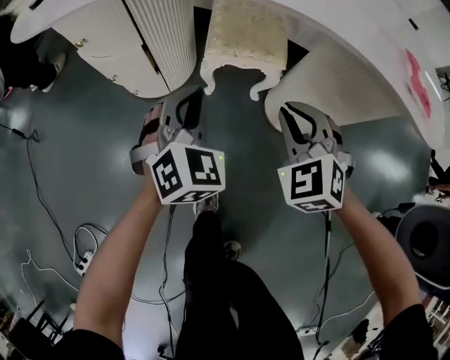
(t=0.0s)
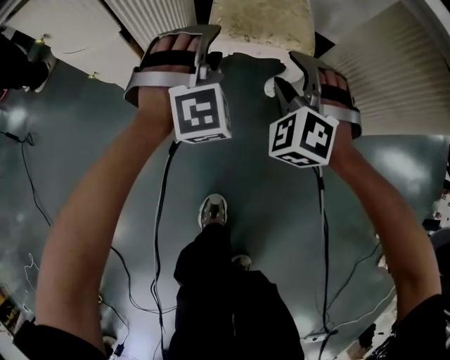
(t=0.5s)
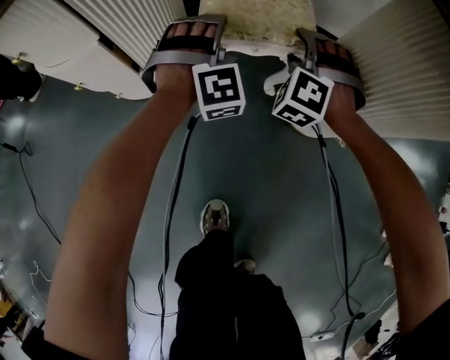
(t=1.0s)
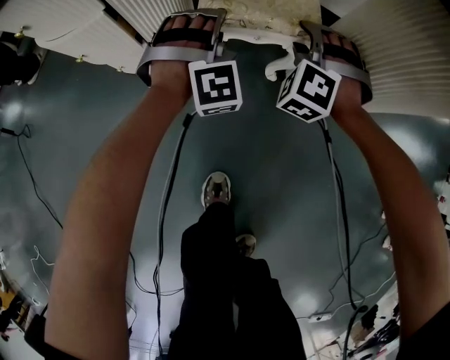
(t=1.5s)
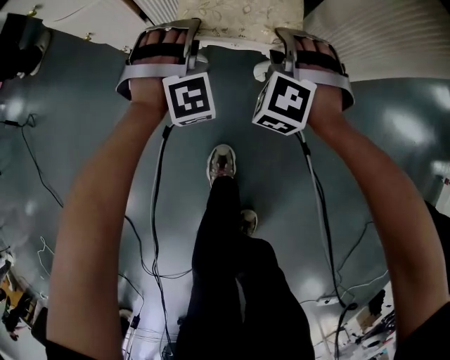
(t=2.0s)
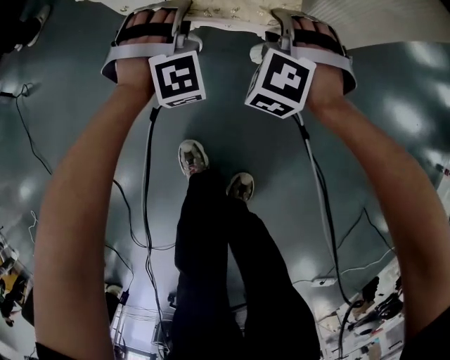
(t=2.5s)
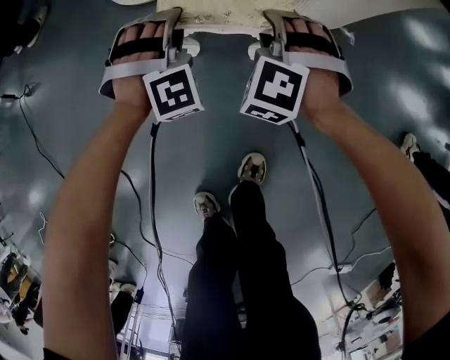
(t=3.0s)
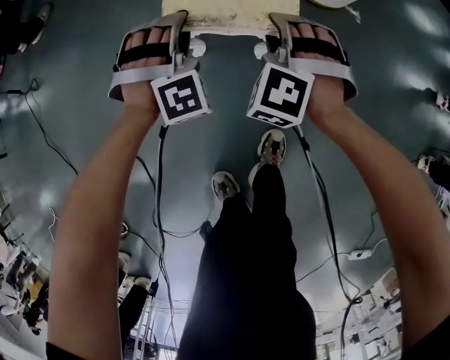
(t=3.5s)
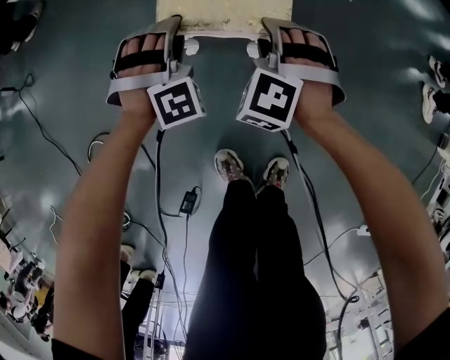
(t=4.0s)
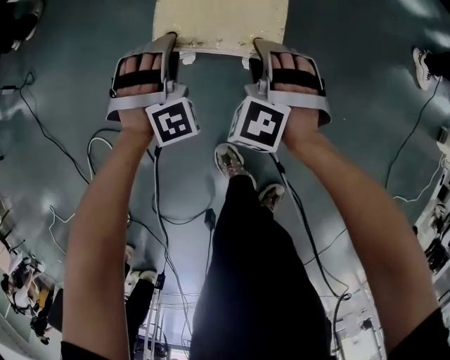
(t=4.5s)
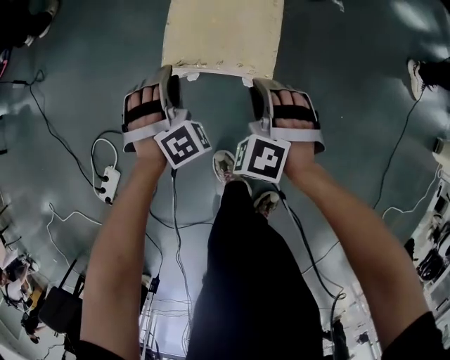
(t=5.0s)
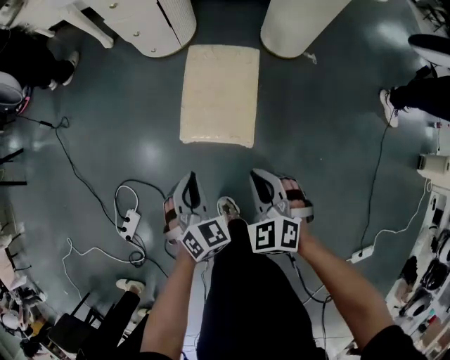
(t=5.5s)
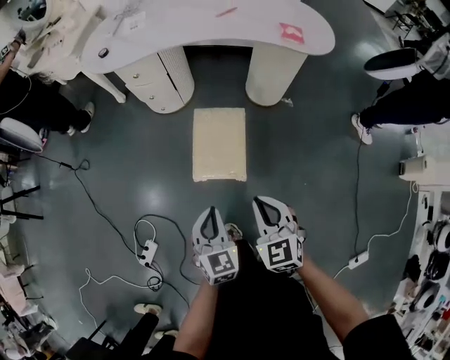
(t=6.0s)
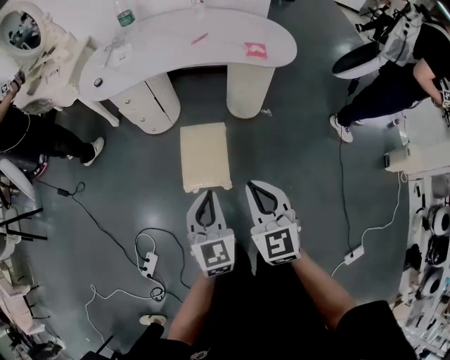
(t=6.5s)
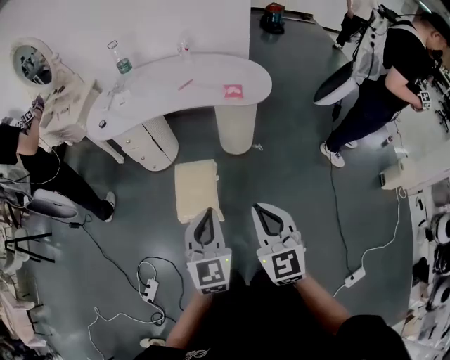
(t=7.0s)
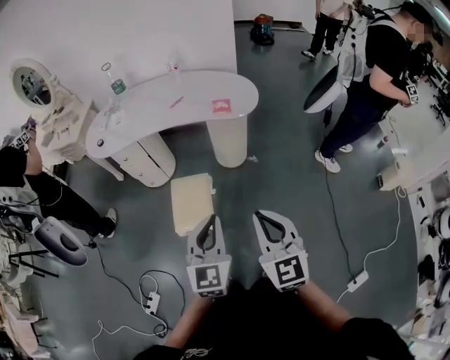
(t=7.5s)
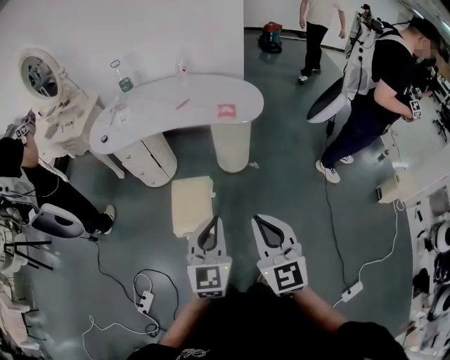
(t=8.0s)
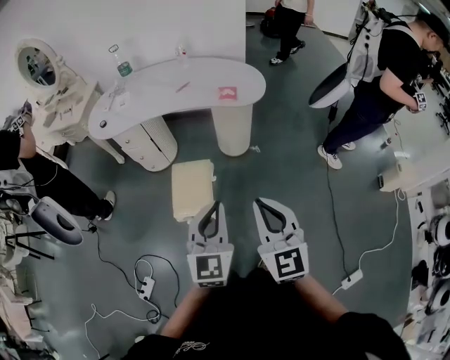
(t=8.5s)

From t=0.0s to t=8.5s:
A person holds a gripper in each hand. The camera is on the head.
From t=0.0s to t=2.0s: The grippers both shift downward by approximately 20 cm. The right gripper reaches roughly 20 cm forward, then returns, changes its angle by some 30 degrees, and opens up. The left gripper goes forward and returns, some 20 cm each way, rotates around the line of its fingers by some 50 degrees, clockwise from behind, and opens.
From t=2.0s to t=4.0s: The grippers both shift backward by approximately 35 cm.
From t=4.0s to t=6.5s: The two grippers go some 60 cm upward. The left gripper rotates around the line of its fingers by about 70 degrees, counterclockwise from behind, and closes; the right gripper rotates around the line of its fingers by approximately 60 degrees, clockwise from behind, and closes up.
From t=6.5s to t=8.5s: The right gripper heads to the right, upward and backward, covering roughly 20 cm, while the left gripper moves to the right and upward, roughly 20 cm.

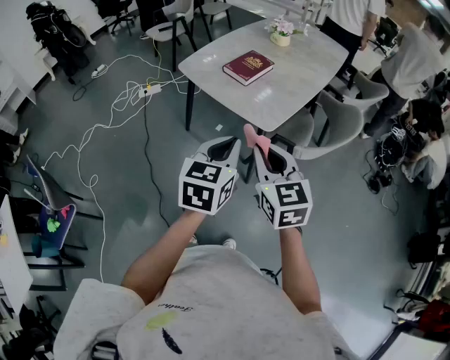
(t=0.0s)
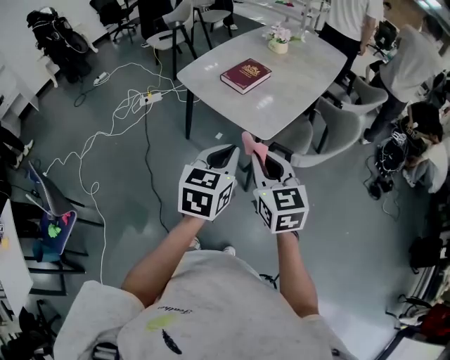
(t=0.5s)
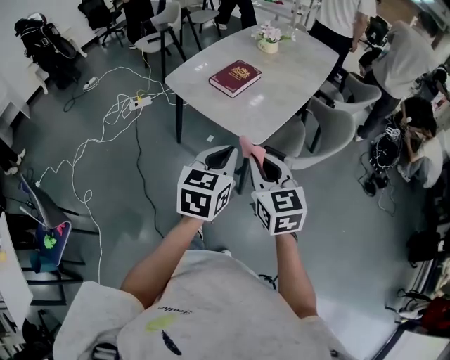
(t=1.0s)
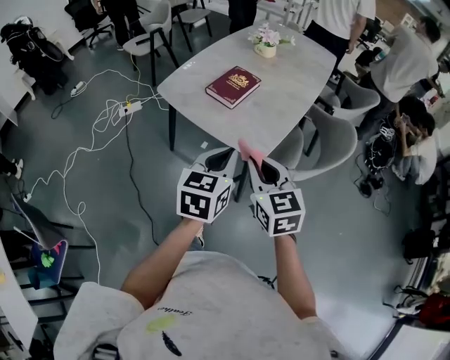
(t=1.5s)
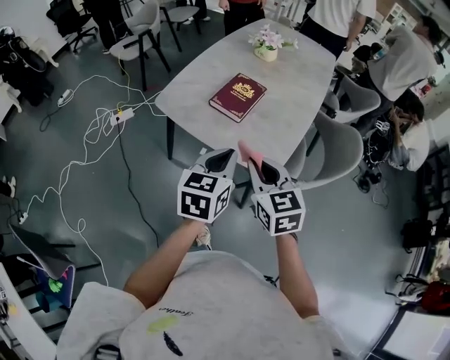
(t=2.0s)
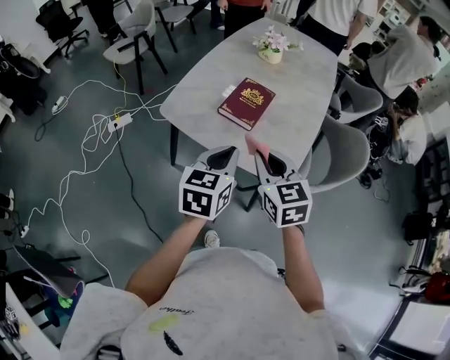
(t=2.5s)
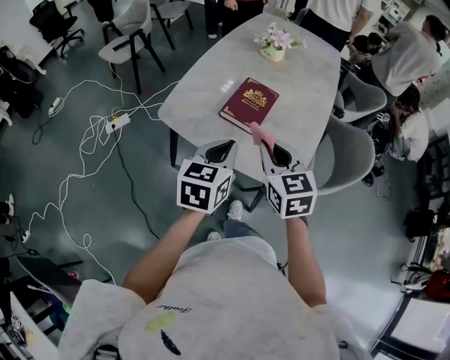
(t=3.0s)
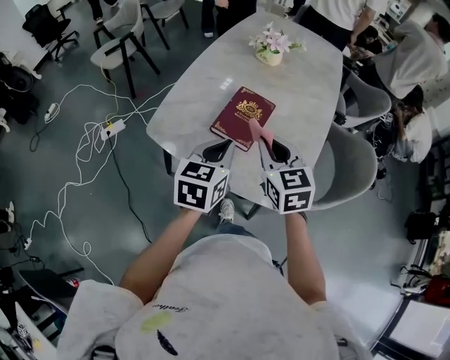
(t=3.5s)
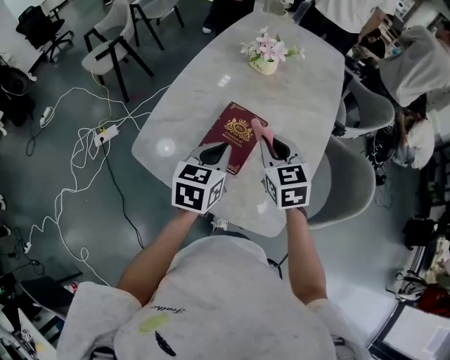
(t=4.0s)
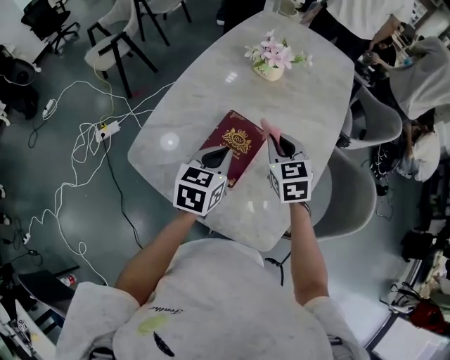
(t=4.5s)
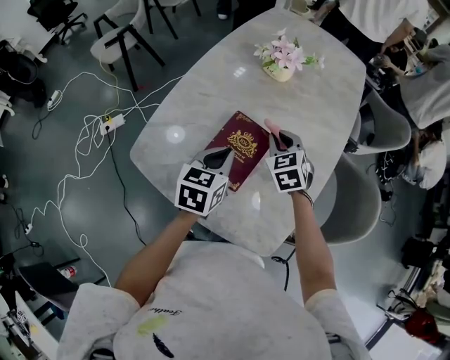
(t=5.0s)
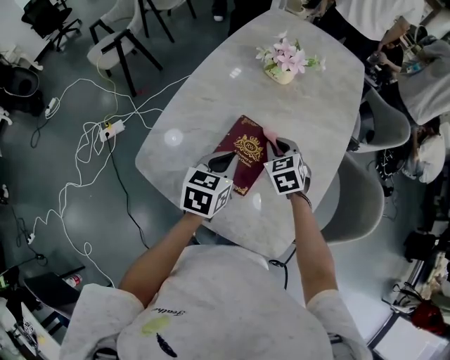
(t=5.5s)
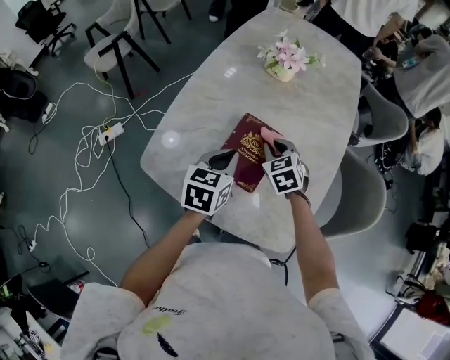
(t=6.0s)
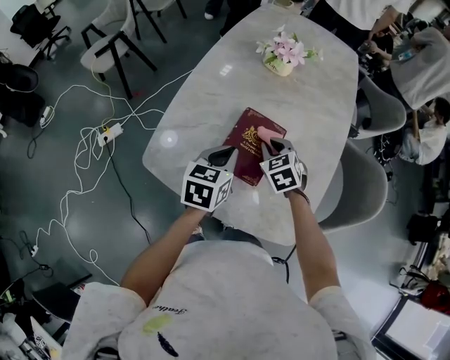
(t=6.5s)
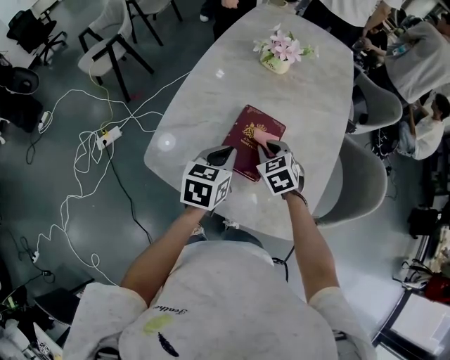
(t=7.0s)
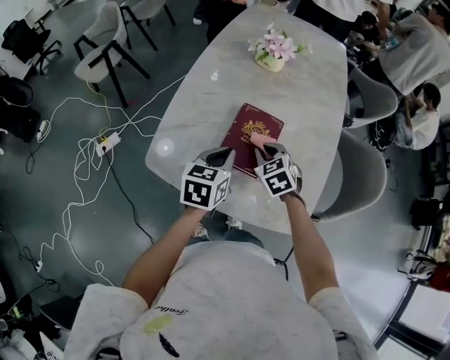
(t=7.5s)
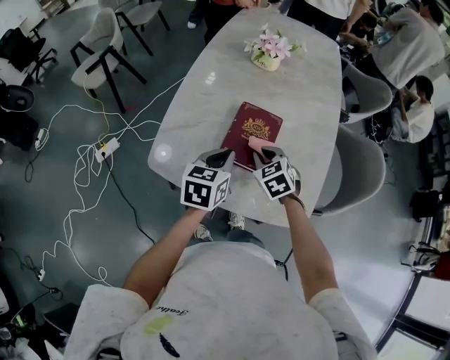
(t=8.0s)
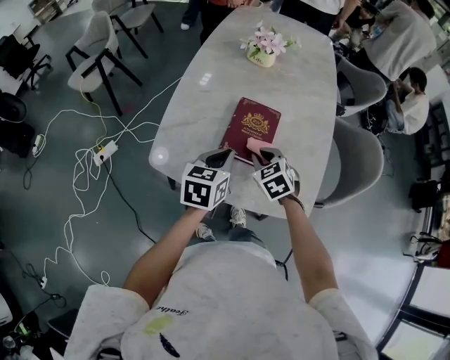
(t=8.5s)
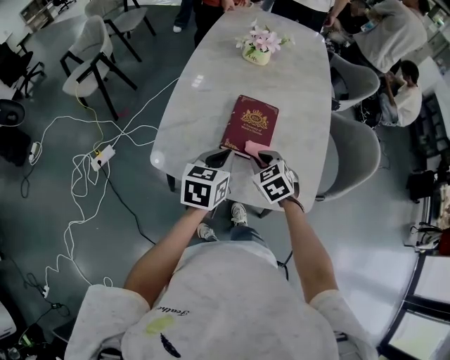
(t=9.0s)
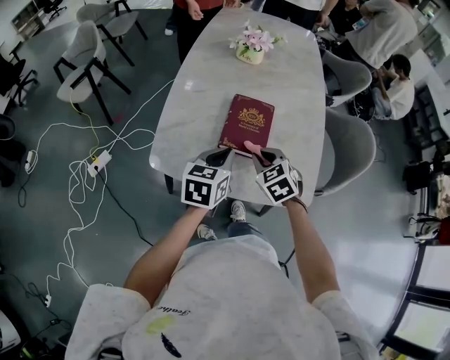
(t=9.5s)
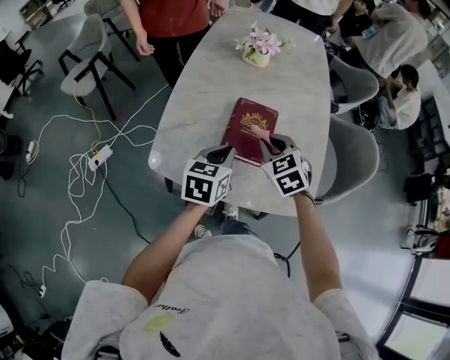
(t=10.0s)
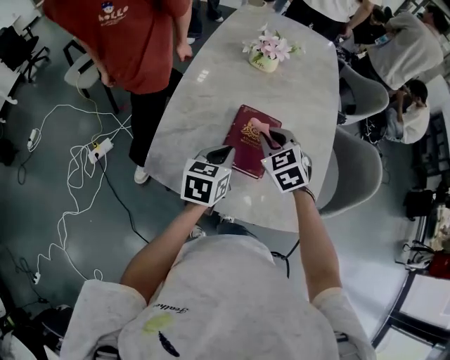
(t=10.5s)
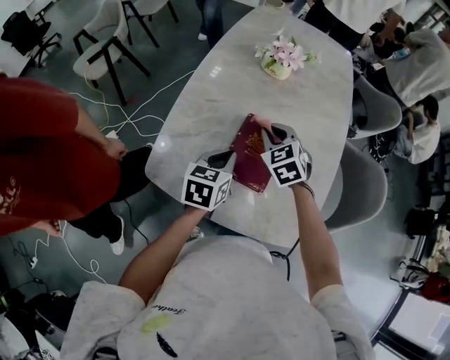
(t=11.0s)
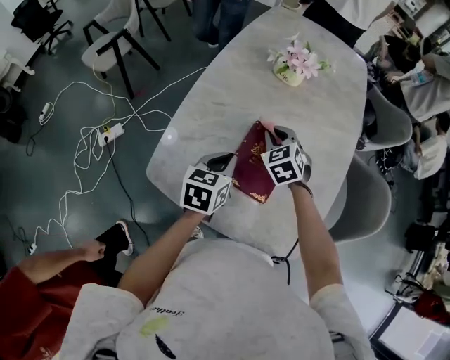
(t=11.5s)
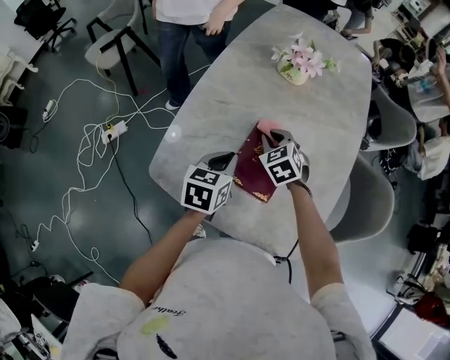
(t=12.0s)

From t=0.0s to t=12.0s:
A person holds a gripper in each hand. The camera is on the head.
From t=0.0s to t=2.0s: The two grippers go approximately 20 cm forward.
From t=2.0s to t=4.0s: Both grippers move forward, some 30 cm.
From t=4.0s to t=6.0s: The left gripper travels forward by approximately 5 cm. Meanwhile the right gripper moves downward and forward, approximately 15 cm, and changes its angle by some 20 degrees.
From t=6.0s to t=8.0s: The left gripper moves backward, some 5 cm; the right gripper goes about 10 cm backward.
From t=8.0s to t=10.0s: The right gripper goes approximately 5 cm upward.
From t=10.0s to t=12.0s: The left gripper heads forward, covering about 10 cm. Meanwhile the right gripper moves forward and downward, roughly 15 cm.

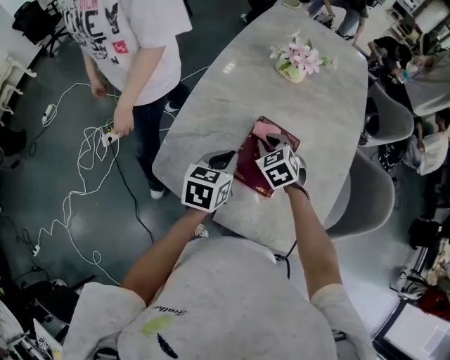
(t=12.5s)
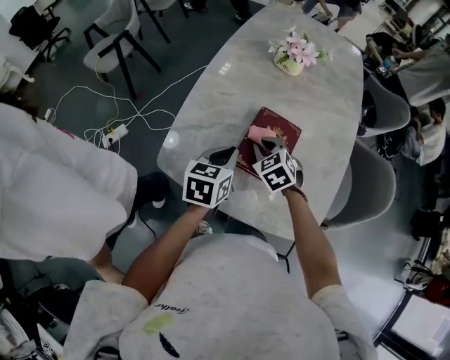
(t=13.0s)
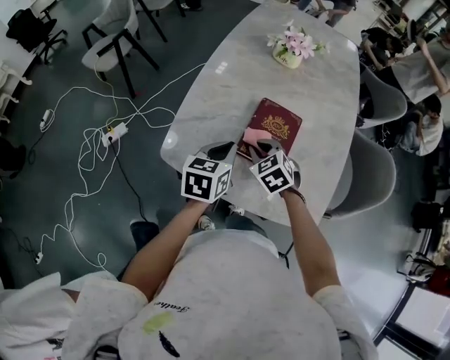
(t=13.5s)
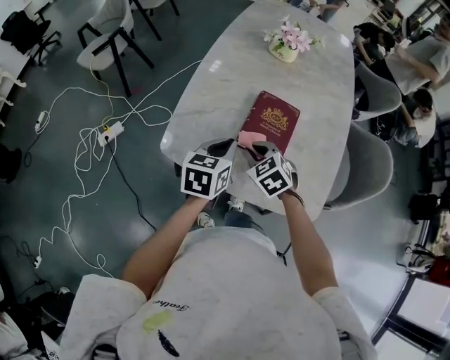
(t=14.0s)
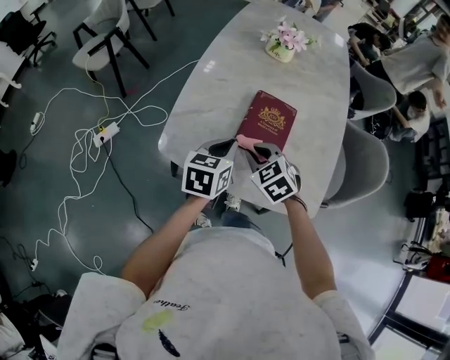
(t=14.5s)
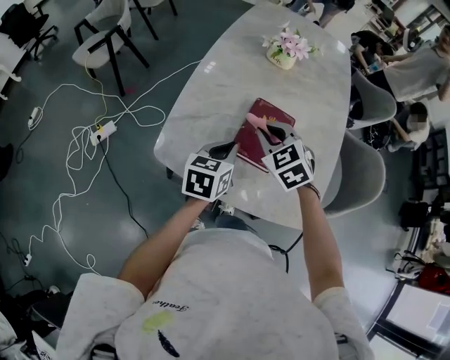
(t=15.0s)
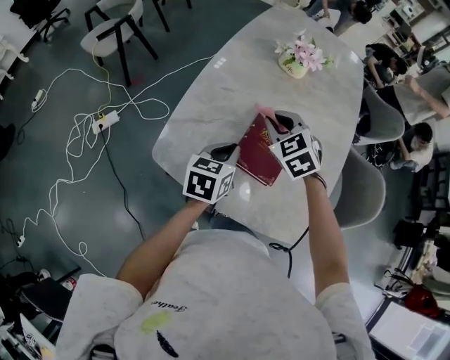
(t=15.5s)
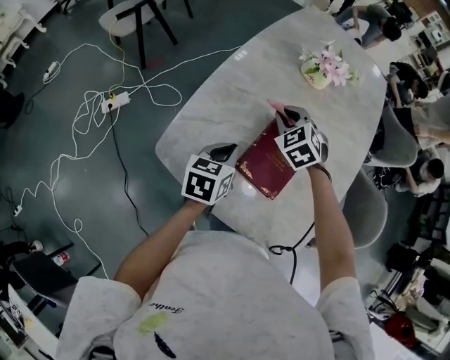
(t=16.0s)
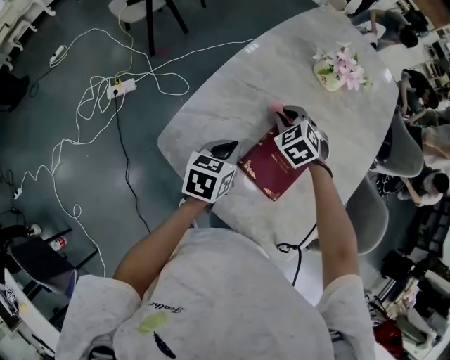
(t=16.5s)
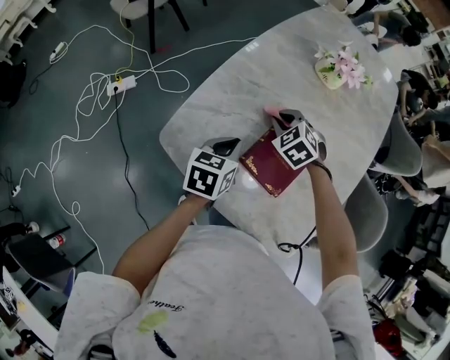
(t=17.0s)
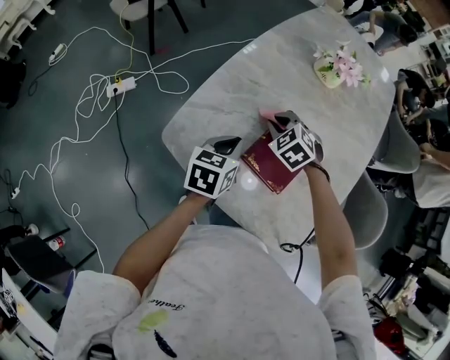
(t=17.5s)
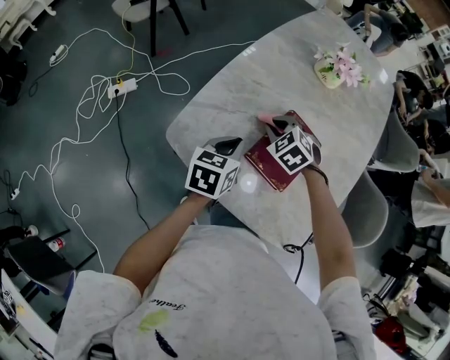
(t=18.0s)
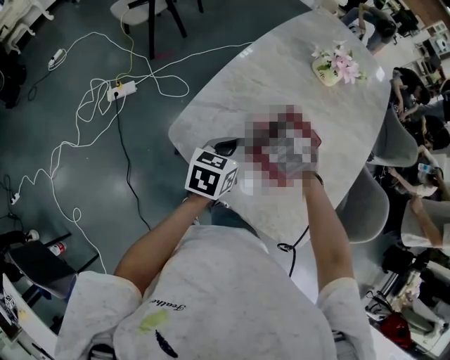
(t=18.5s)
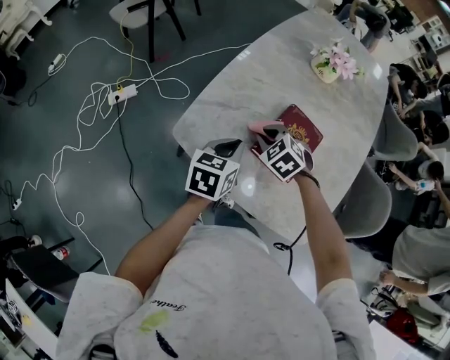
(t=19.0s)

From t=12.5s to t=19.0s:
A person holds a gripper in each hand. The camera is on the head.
From t=12.5s to t=14.5s: The right gripper moves backward, approximately 15 cm, while the left gripper shifts approximately 10 cm backward.
From t=14.5s to t=17.0s: The right gripper travels forward by roughly 20 cm, and rotates about 30 degrees, while the left gripper is displaced forward and downward by roughly 10 cm.
From t=17.0s to t=19.0s: The right gripper is displaced backward and to the left by roughly 10 cm. The left gripper moves approximately 5 cm.
